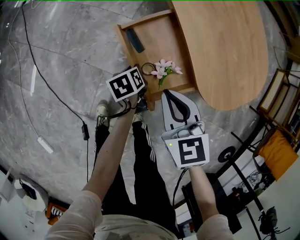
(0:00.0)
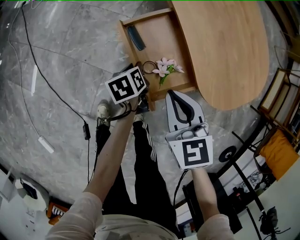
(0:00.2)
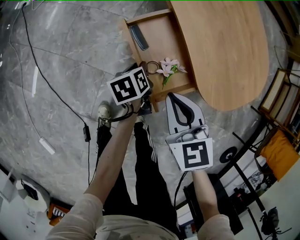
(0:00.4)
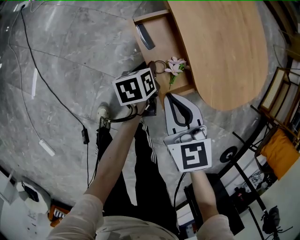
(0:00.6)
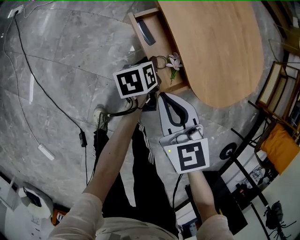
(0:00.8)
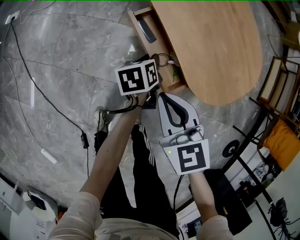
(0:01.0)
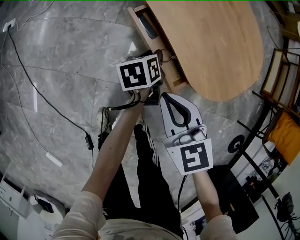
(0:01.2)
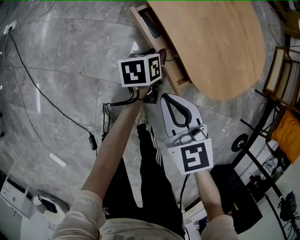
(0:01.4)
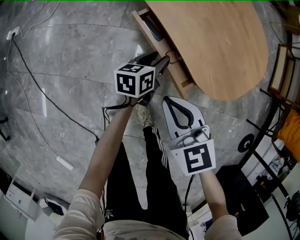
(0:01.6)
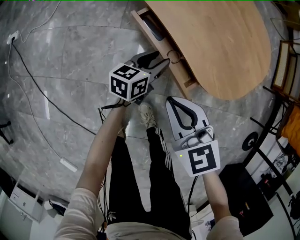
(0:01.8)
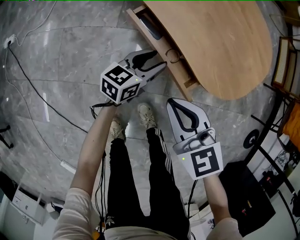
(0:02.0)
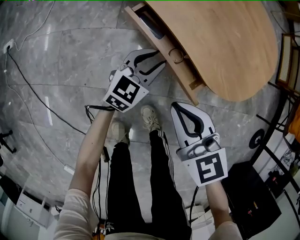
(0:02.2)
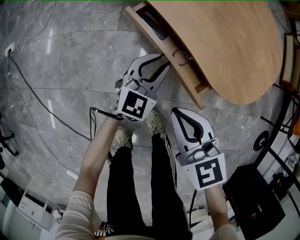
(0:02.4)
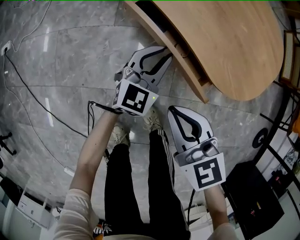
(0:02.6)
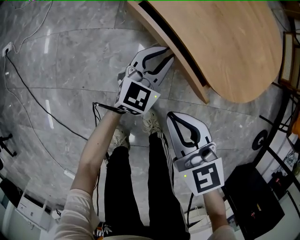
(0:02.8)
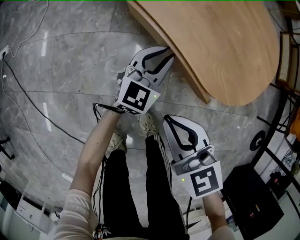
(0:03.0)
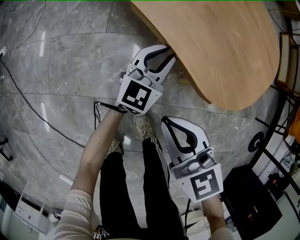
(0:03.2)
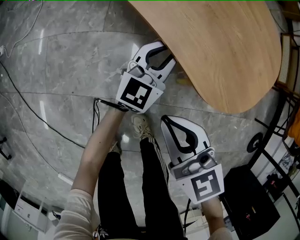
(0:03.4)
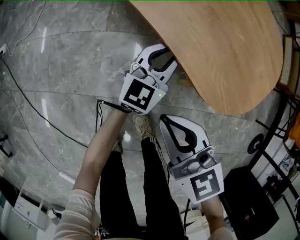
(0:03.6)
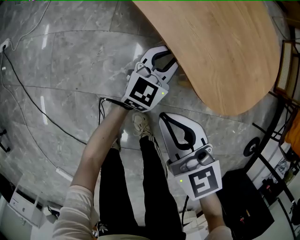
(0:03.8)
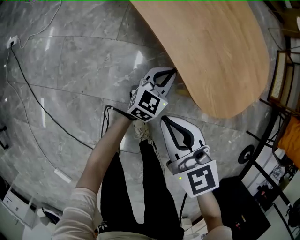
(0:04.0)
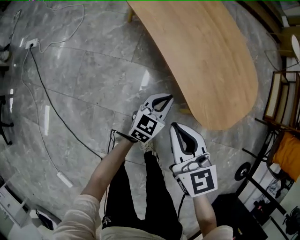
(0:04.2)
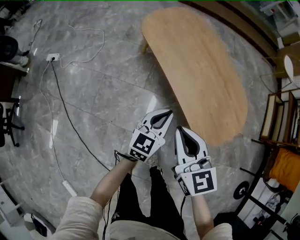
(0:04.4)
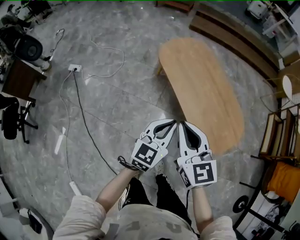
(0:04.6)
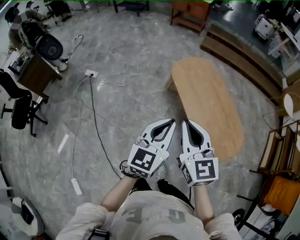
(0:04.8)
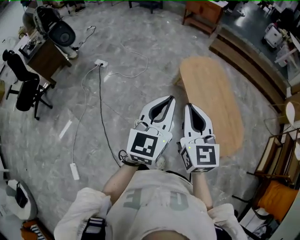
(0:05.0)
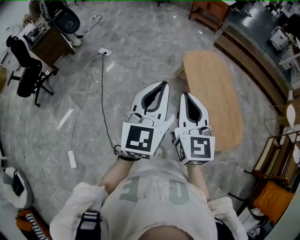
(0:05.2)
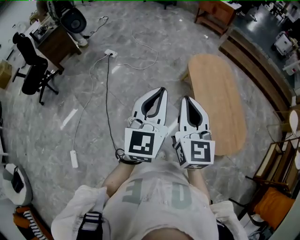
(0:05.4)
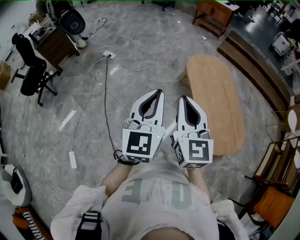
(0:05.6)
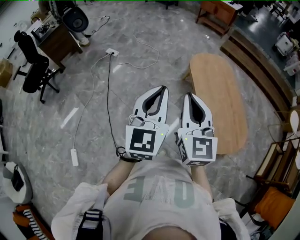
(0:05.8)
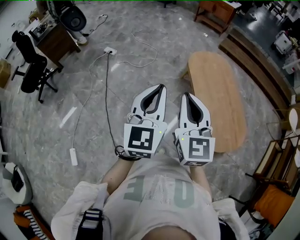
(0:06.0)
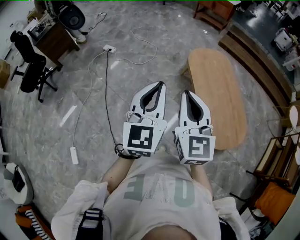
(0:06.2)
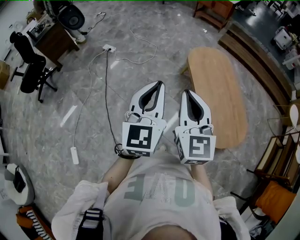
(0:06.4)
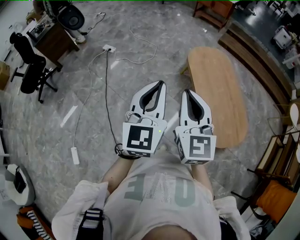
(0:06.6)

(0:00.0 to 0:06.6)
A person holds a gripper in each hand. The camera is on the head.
0:00.0 - 0:01.6: The left gripper moves to the right, forward and upward, approximately 15 cm, and changes its angle by some 50 degrees.
0:01.6 - 0:03.2: The right gripper heads downward, covering approximately 5 cm. Meanwhile the left gripper shifts roughly 5 cm to the right, twists roughly 50 degrees clockwise, seen from behind, and closes up.
0:03.2 - 0:05.0: The two grippers go approximately 60 cm upward. The left gripper changes its angle by roughly 40 degrees, while the right gripper changes its angle by approximately 30 degrees.
0:05.0 - 0:06.6: The right gripper ends up roughly 5 cm from where it was. The left gripper moves to the left, about 5 cm.

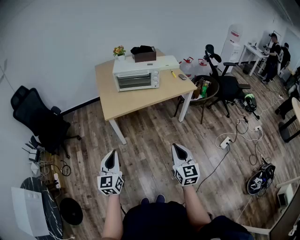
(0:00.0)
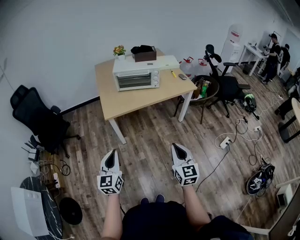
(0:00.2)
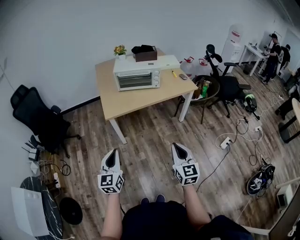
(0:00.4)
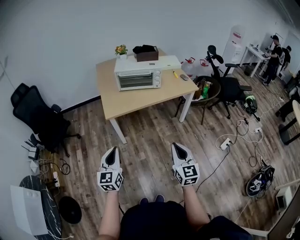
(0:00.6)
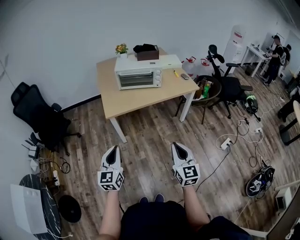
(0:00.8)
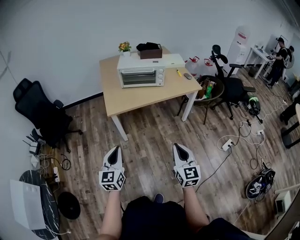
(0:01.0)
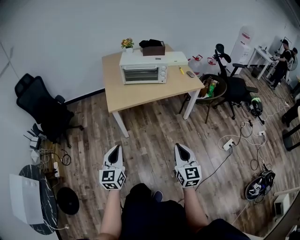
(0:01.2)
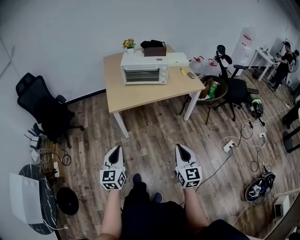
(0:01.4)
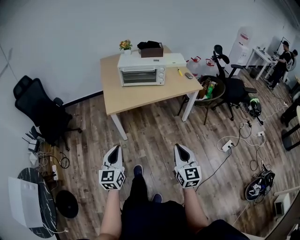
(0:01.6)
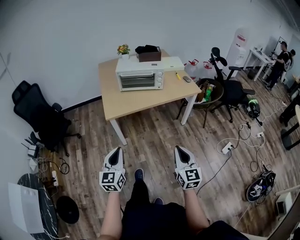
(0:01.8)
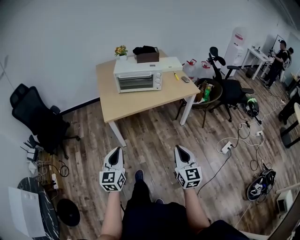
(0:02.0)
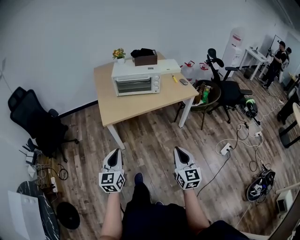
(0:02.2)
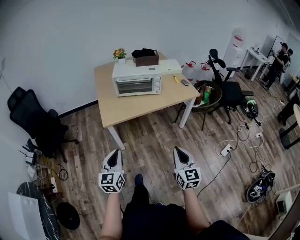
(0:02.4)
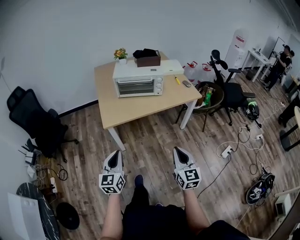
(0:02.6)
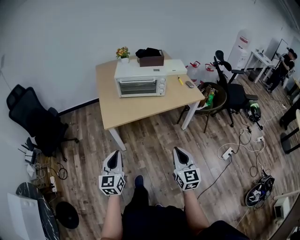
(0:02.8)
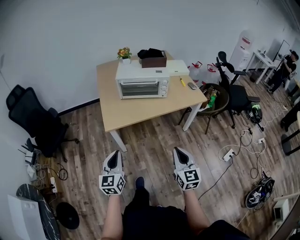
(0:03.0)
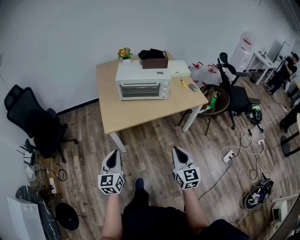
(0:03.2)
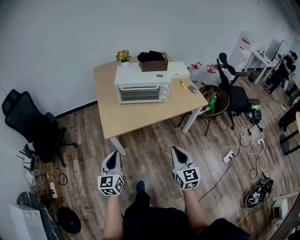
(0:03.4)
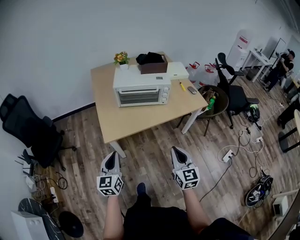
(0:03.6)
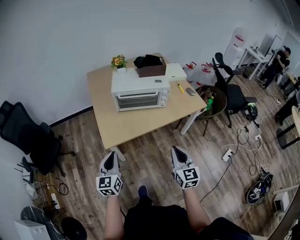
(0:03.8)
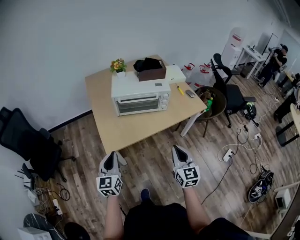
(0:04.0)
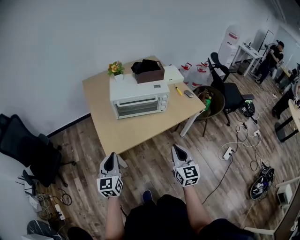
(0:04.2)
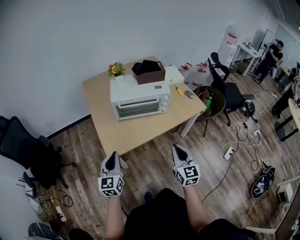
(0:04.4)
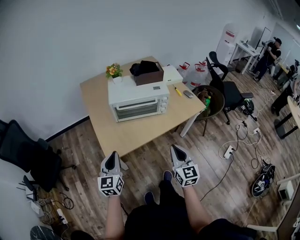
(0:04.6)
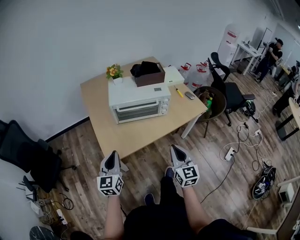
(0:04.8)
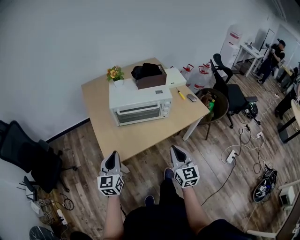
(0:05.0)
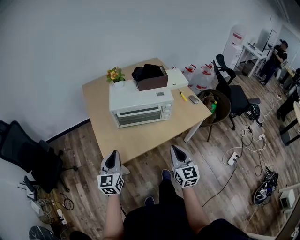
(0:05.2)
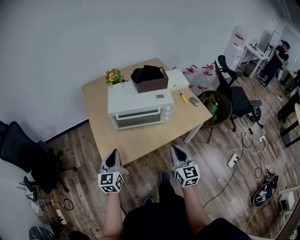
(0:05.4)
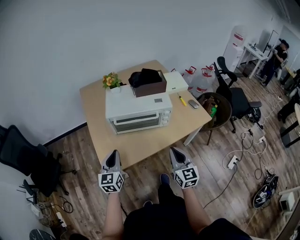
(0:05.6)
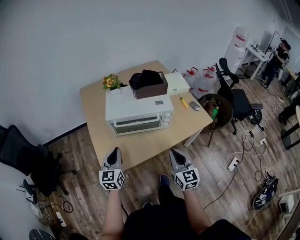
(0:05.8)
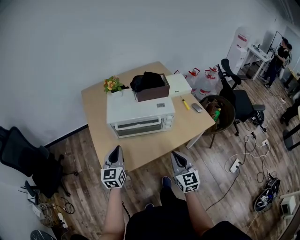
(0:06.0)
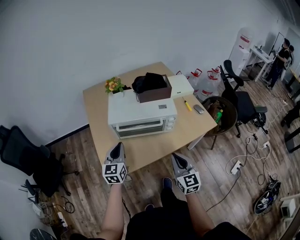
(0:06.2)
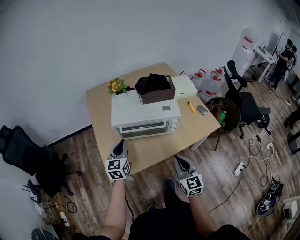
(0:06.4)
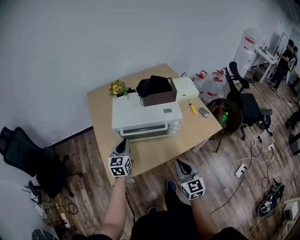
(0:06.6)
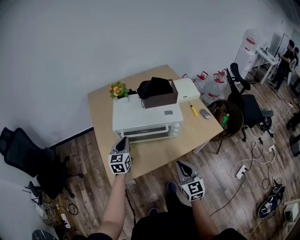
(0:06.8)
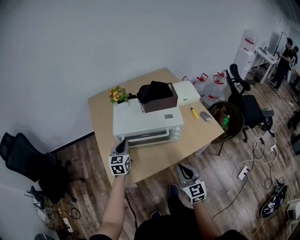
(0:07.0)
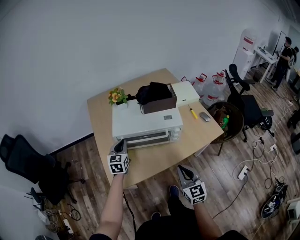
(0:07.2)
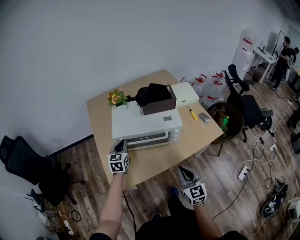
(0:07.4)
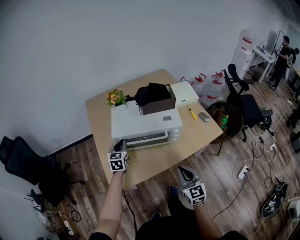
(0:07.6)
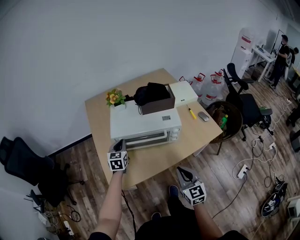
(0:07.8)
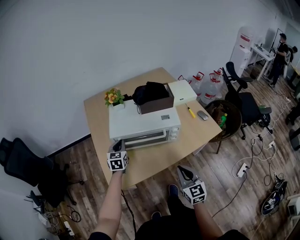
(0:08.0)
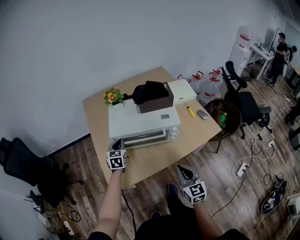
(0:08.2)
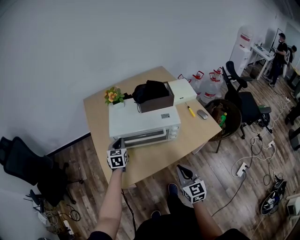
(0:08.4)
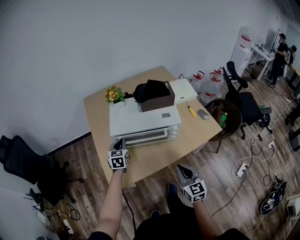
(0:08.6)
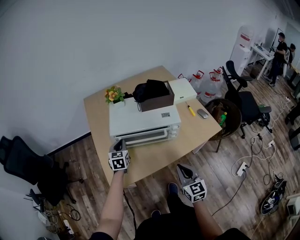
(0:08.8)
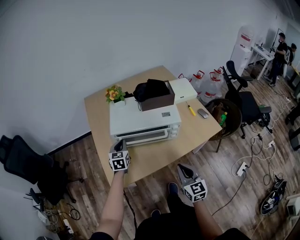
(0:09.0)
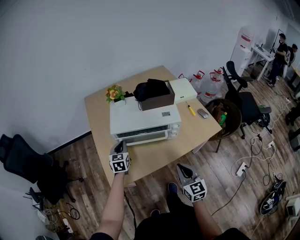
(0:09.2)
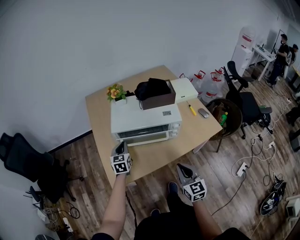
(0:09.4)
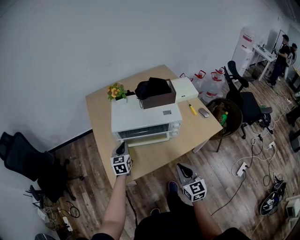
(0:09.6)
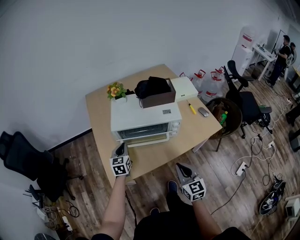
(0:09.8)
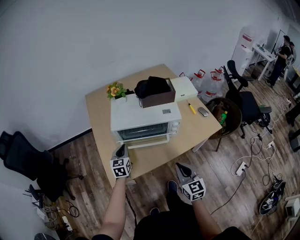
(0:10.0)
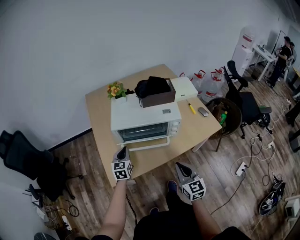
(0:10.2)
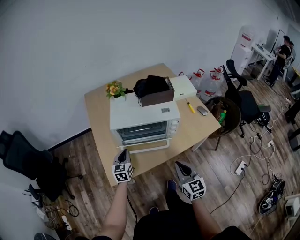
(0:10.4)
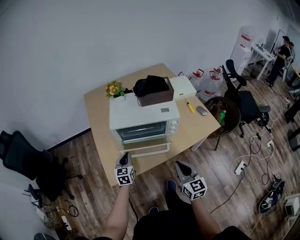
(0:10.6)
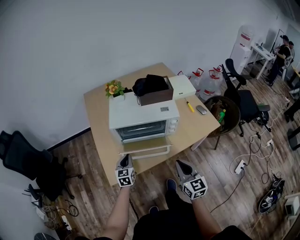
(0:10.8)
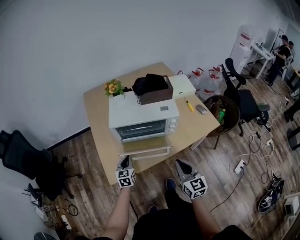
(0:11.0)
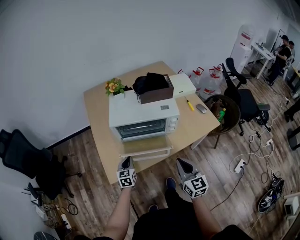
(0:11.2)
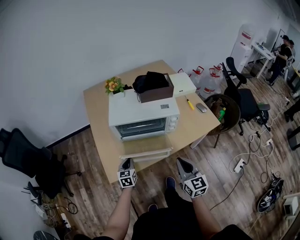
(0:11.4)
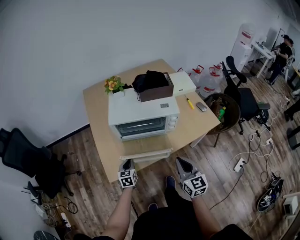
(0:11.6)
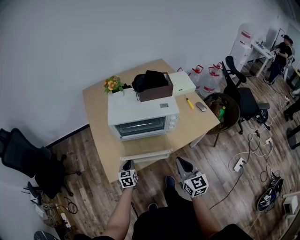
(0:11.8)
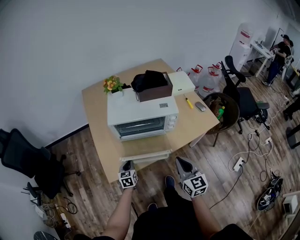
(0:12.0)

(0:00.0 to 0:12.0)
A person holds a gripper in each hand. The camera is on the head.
0:00.0 - 0:01.6: The grippers move only a little.
0:01.6 - 0:03.0: The grippers both shift forward by about 15 cm.
0:03.0 - 0:04.4: The grippers both shift forward by about 20 cm.
0:04.4 - 0:06.0: Both grippers travel together forward, some 20 cm.
0:06.0 - 0:07.6: The left gripper heads forward, covering about 15 cm.
0:07.6 - 0:09.0: The grippers stay close to where they were, moving slightly.
0:09.0 - 0:10.4: The left gripper heads backward, covering approximately 10 cm.
0:10.4 - 0:12.0: The left gripper travels downward and backward by roughly 10 cm.

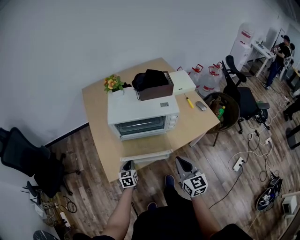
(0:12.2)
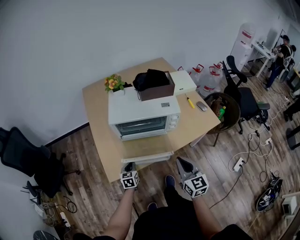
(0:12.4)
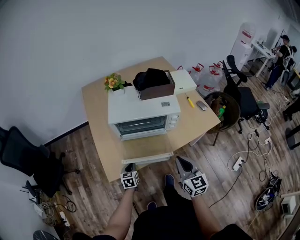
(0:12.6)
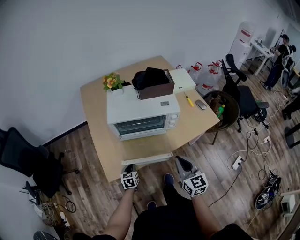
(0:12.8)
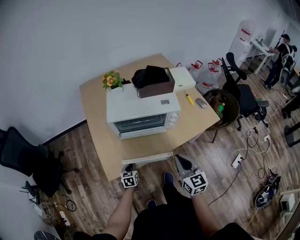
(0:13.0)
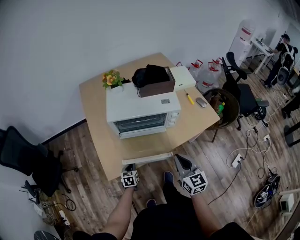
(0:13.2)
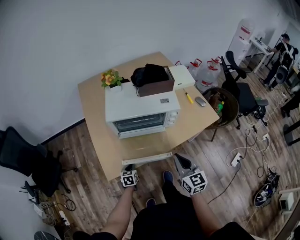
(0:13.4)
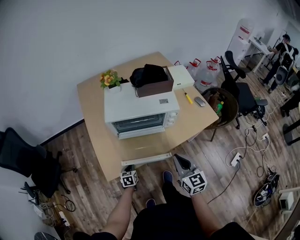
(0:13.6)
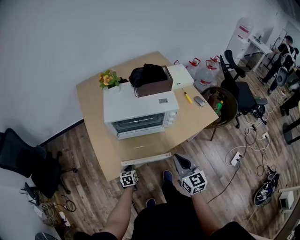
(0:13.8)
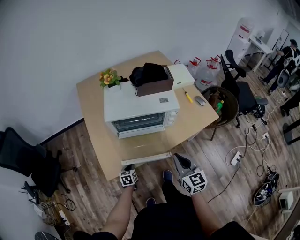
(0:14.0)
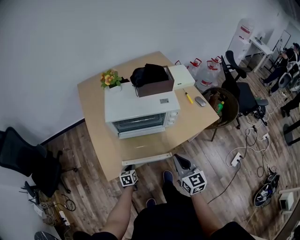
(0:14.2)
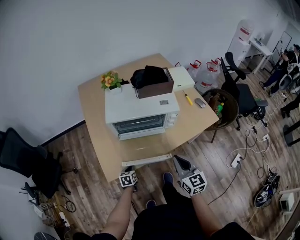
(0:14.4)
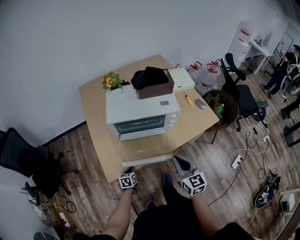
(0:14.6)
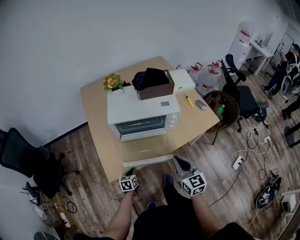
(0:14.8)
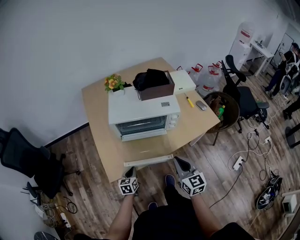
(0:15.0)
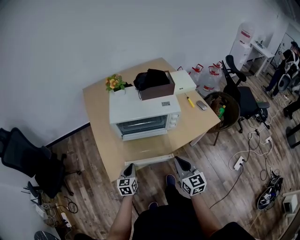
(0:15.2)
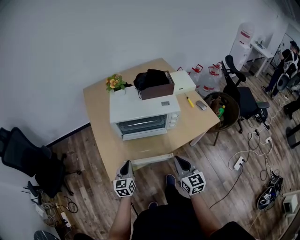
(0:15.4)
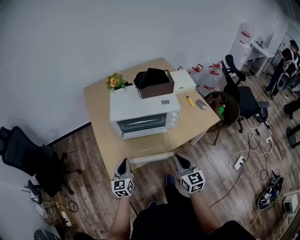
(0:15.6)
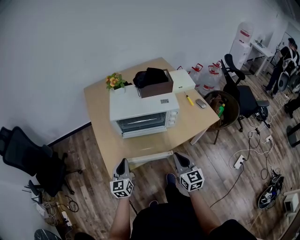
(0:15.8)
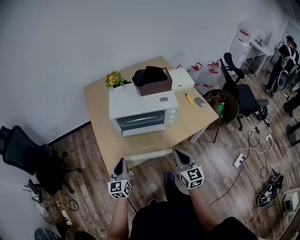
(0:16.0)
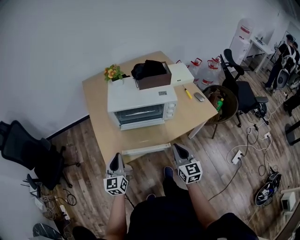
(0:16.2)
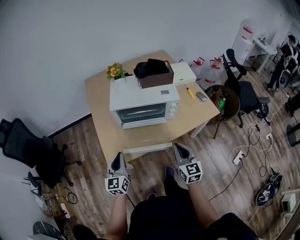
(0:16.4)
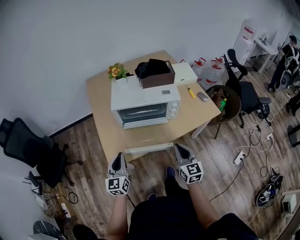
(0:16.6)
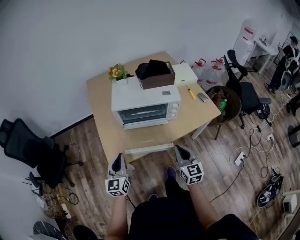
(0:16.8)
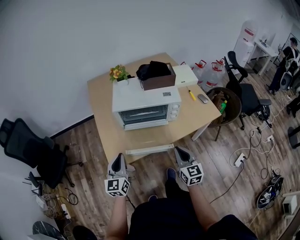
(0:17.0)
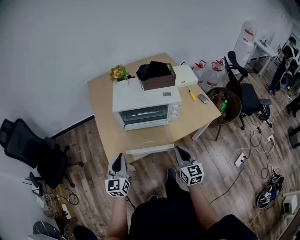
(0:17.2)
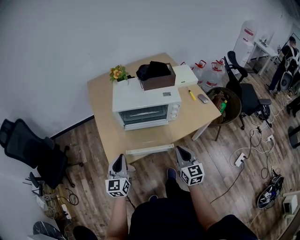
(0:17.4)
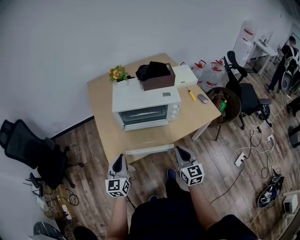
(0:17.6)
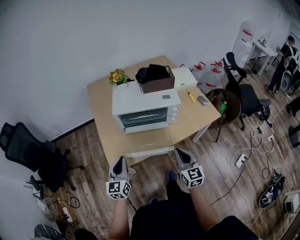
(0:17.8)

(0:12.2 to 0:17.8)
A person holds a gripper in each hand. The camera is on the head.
0:12.2 - 0:13.6: The left gripper heads downward, covering about 10 cm.
0:13.6 - 0:15.0: The left gripper moves upward, approximately 5 cm.
0:15.0 - 0:16.4: The left gripper moves upward, about 20 cm, and changes its angle by approximately 30 degrees.
0:16.4 - 0:17.8: The grippers stay close to where they were, moving slightly.
